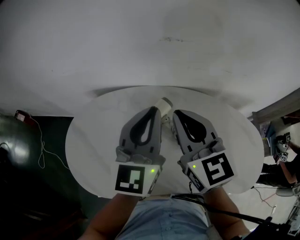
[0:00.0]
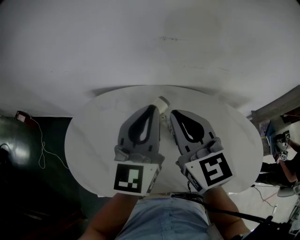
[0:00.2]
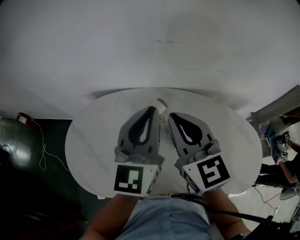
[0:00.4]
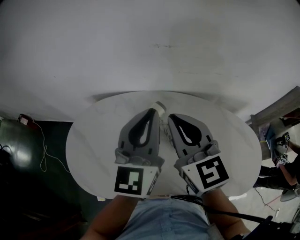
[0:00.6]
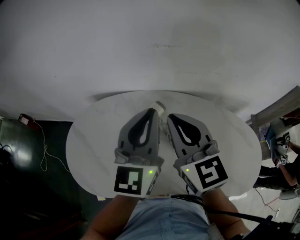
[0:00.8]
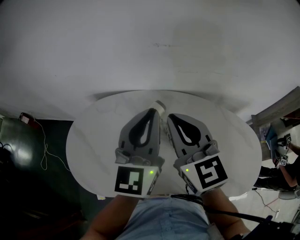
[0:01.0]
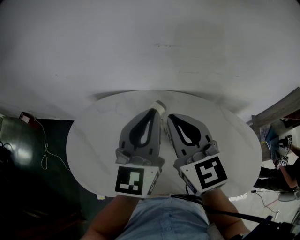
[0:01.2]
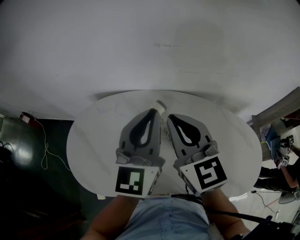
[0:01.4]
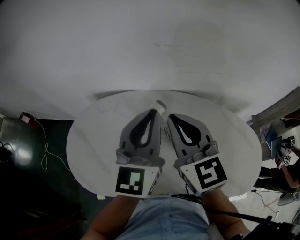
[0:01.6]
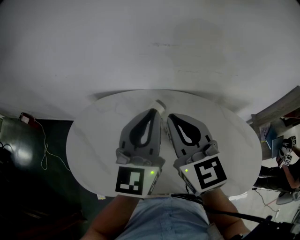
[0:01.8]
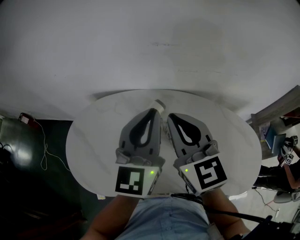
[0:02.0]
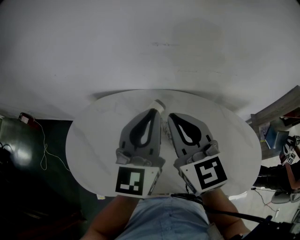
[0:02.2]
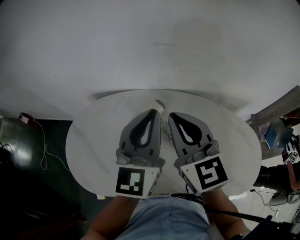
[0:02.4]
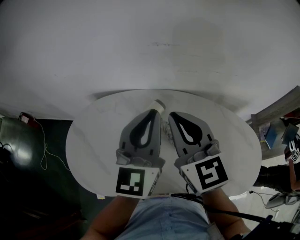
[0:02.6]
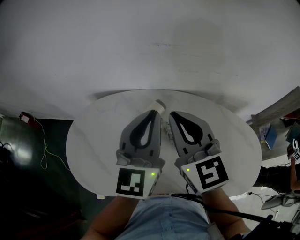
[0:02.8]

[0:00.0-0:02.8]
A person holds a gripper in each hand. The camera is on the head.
0:00.0 to 0:01.4: The left gripper ends up some 5 cm from where it was.
0:01.4 to 0:02.8: Both grippers stay about where they are.

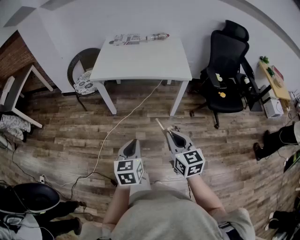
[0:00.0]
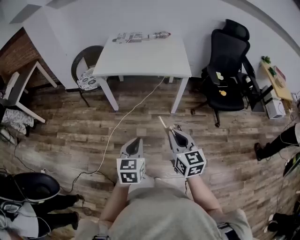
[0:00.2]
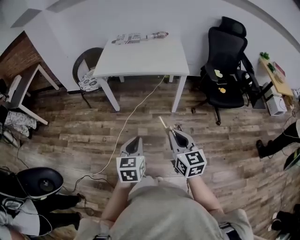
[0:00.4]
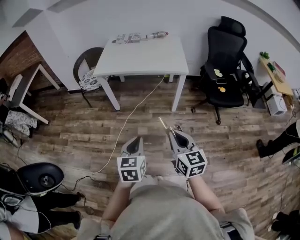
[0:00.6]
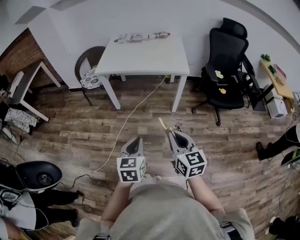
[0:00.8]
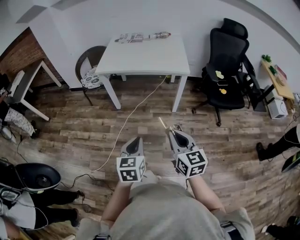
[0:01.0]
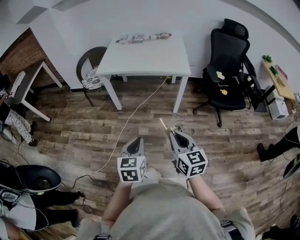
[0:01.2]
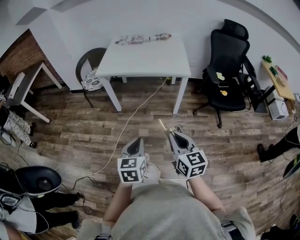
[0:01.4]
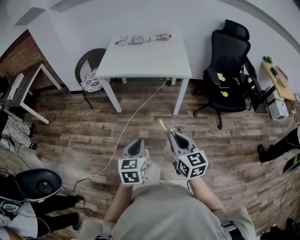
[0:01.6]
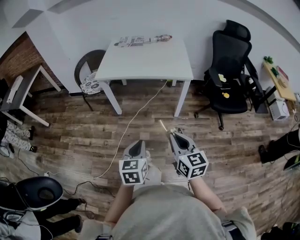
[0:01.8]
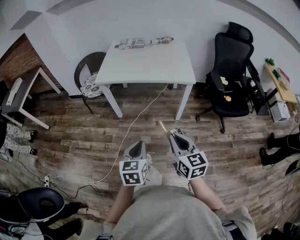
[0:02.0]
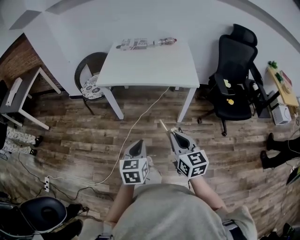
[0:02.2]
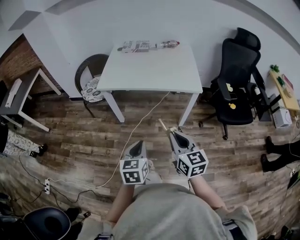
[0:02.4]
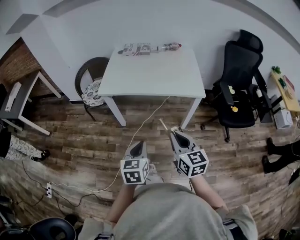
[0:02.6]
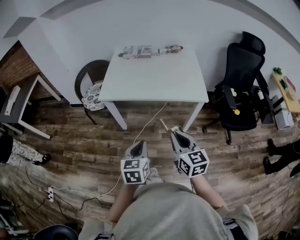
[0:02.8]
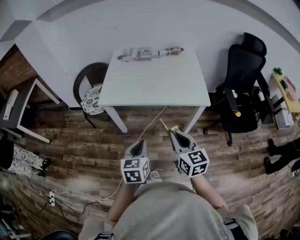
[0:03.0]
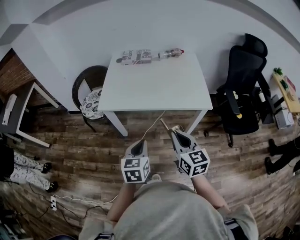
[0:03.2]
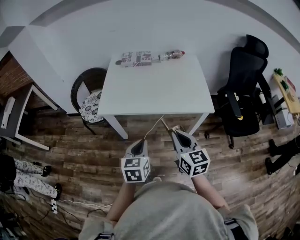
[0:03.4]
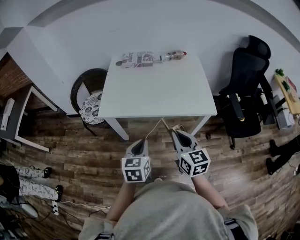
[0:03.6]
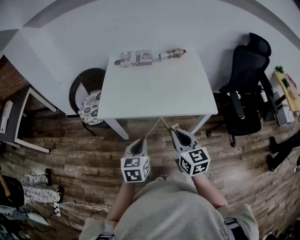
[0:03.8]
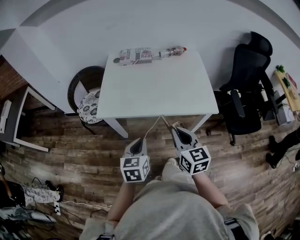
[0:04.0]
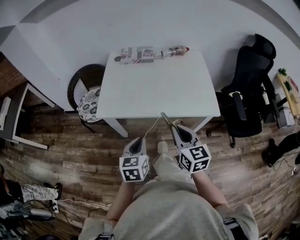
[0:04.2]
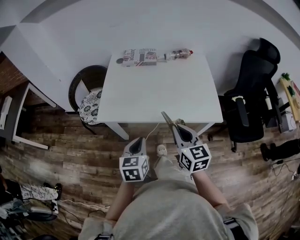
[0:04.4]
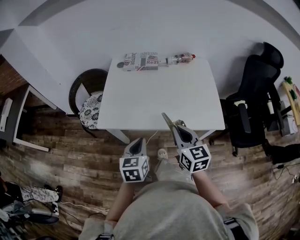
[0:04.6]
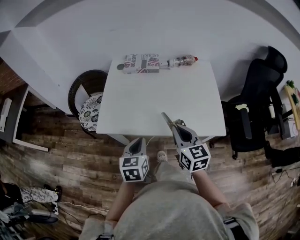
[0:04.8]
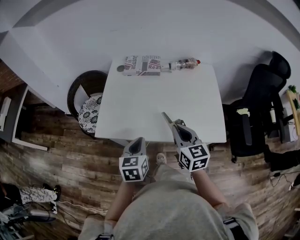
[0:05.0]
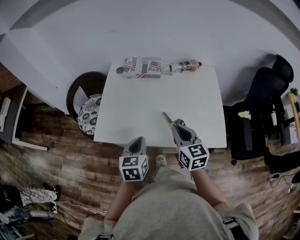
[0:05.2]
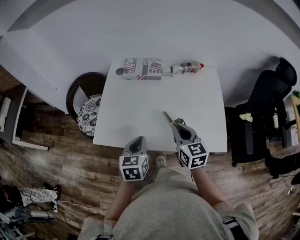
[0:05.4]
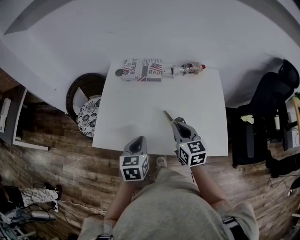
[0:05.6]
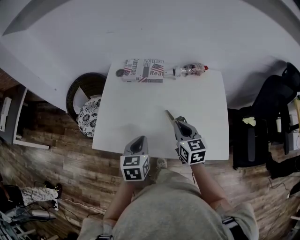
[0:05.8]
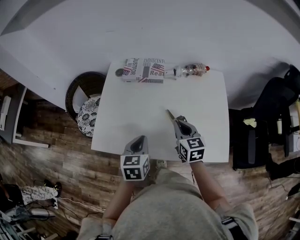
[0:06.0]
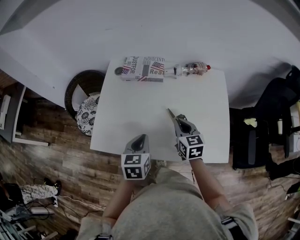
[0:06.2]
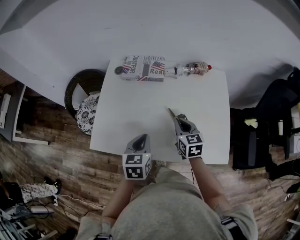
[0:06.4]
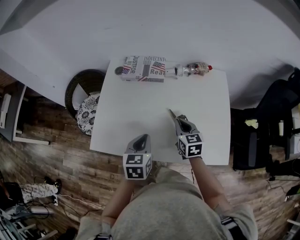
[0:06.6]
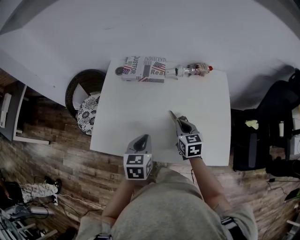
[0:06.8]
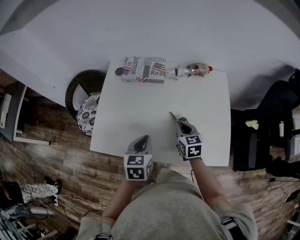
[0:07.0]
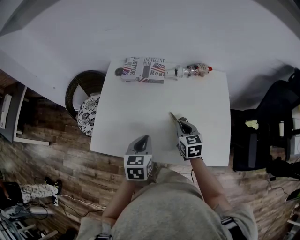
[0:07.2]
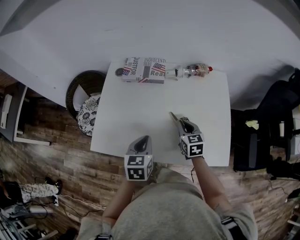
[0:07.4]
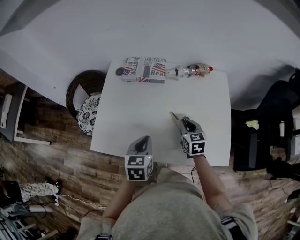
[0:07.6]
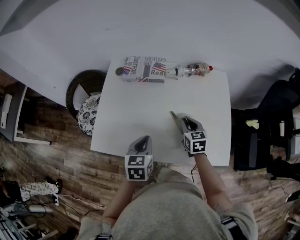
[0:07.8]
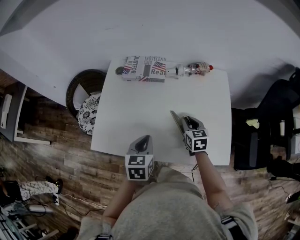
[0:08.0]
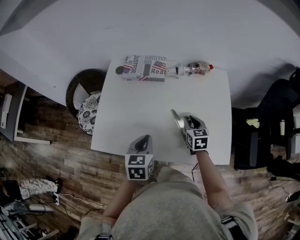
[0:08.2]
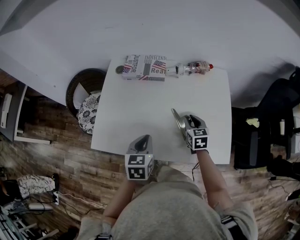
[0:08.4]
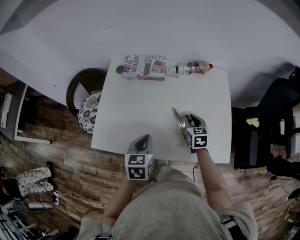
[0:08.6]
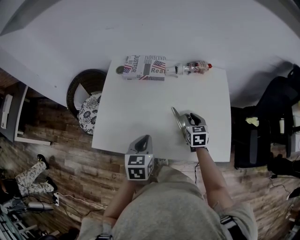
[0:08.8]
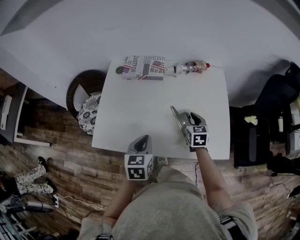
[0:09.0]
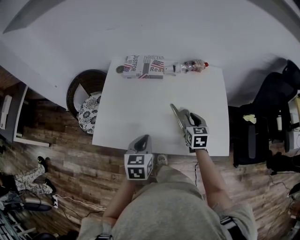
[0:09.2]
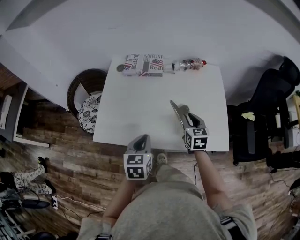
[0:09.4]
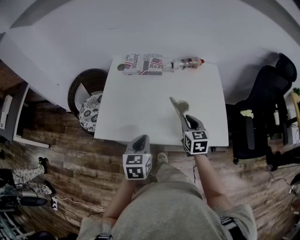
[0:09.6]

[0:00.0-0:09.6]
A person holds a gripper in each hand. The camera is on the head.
0:00.0 to 0:01.6: The grippers both shift backward by some 5 cm.
0:01.6 to 0:03.2: Both grippers move forward, roughly 35 cm.
0:03.2 to 0:04.8: Both grippers move forward, some 25 cm.
0:04.8 to 0:06.4: The left gripper is displaced forward by approximately 15 cm. Meanwhile the right gripper is displaced forward and downward by about 25 cm.
0:06.4 to 0:08.0: The right gripper moves about 5 cm.
0:08.0 to 0:09.6: The right gripper travels backward and upward by roughly 15 cm. Meanwhile the left gripper moves backward, approximately 10 cm.

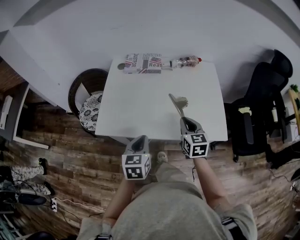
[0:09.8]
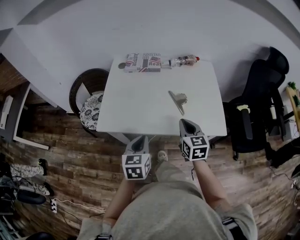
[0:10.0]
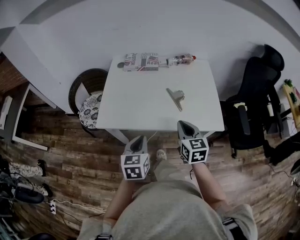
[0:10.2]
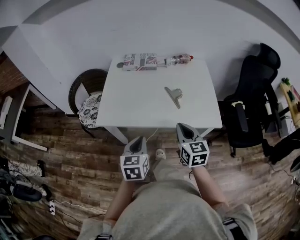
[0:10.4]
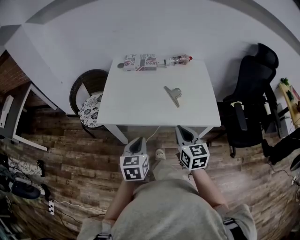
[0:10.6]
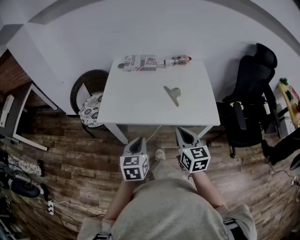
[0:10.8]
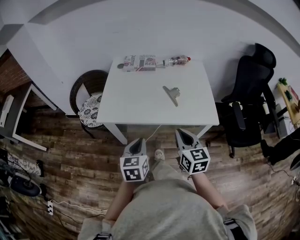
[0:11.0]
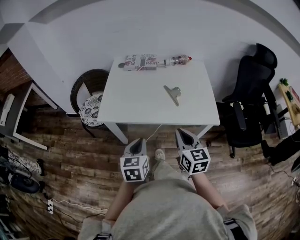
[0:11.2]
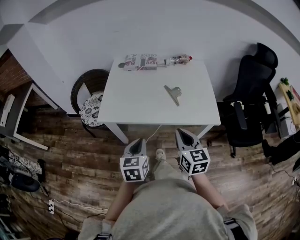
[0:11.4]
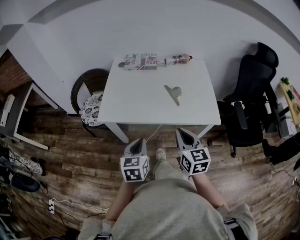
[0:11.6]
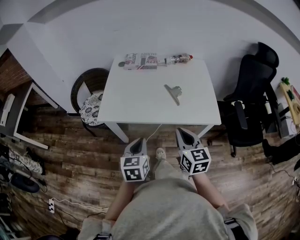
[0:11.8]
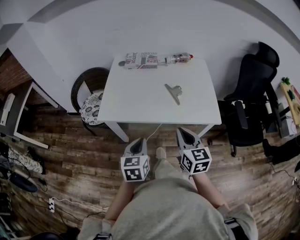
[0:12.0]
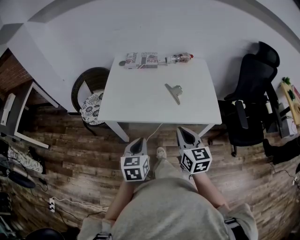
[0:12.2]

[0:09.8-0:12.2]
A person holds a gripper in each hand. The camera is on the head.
0:09.8 to 0:11.0: Both grippers move backward, some 15 cm.
0:11.0 to 0:12.2: The two grippers keep their place.

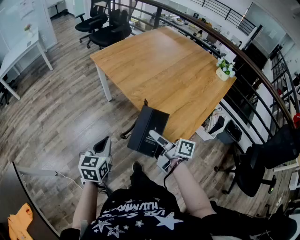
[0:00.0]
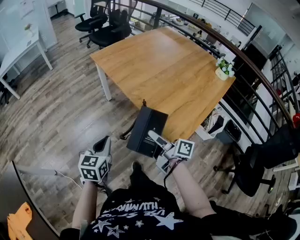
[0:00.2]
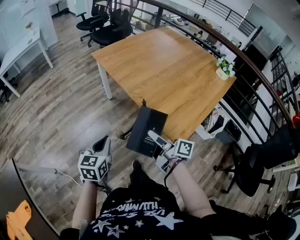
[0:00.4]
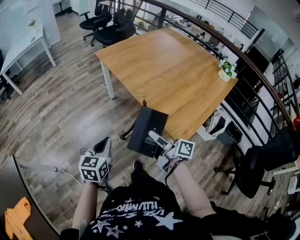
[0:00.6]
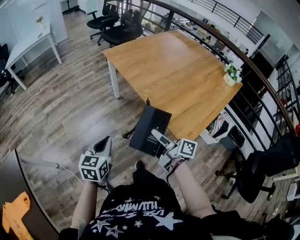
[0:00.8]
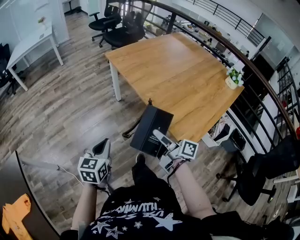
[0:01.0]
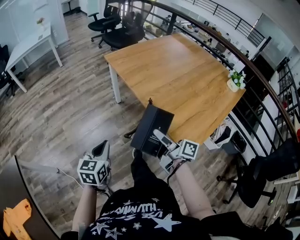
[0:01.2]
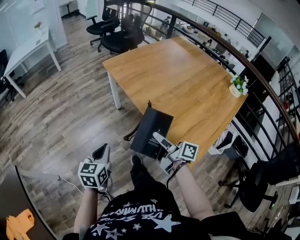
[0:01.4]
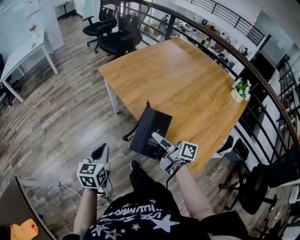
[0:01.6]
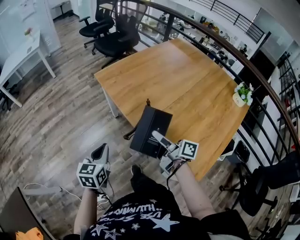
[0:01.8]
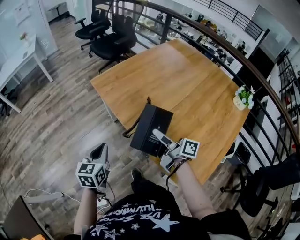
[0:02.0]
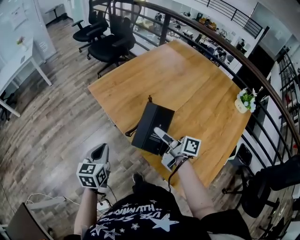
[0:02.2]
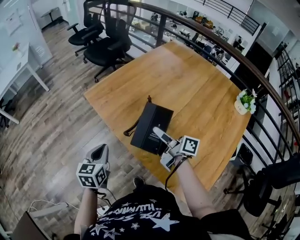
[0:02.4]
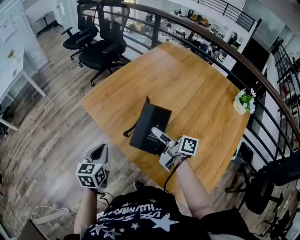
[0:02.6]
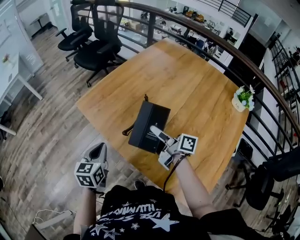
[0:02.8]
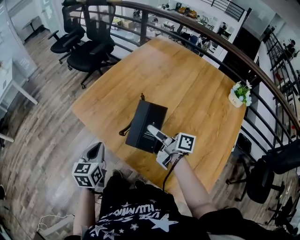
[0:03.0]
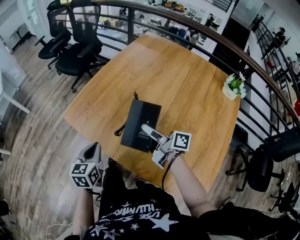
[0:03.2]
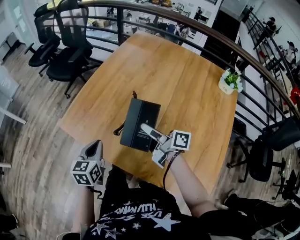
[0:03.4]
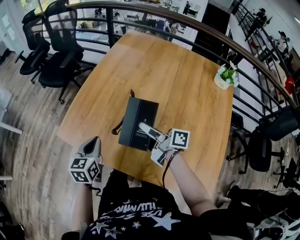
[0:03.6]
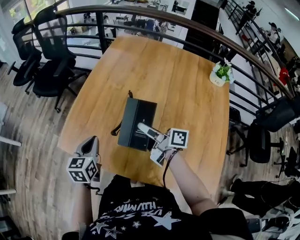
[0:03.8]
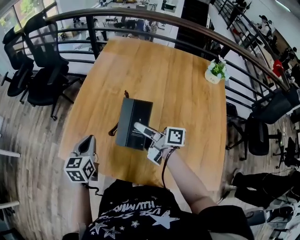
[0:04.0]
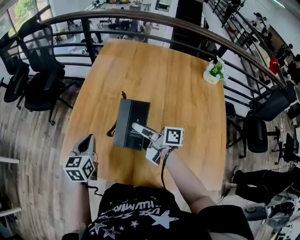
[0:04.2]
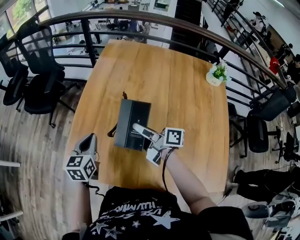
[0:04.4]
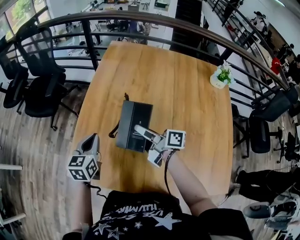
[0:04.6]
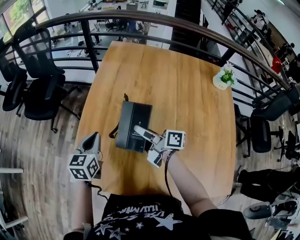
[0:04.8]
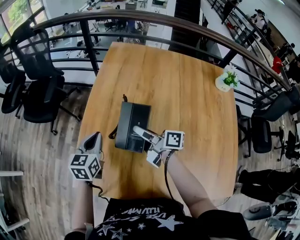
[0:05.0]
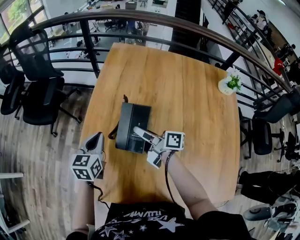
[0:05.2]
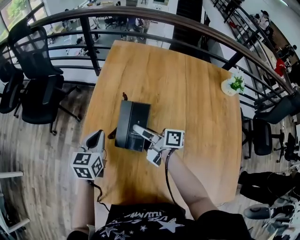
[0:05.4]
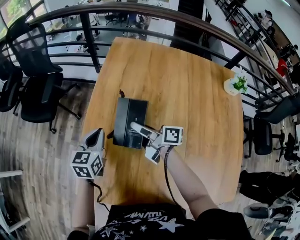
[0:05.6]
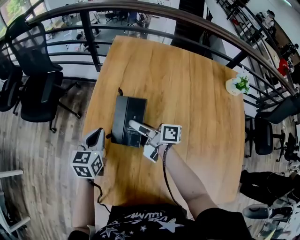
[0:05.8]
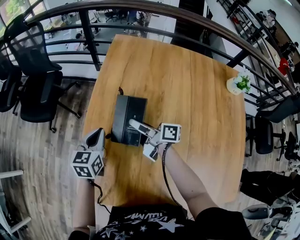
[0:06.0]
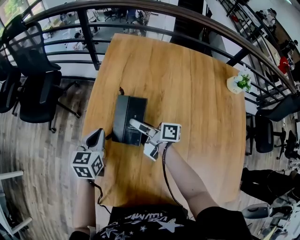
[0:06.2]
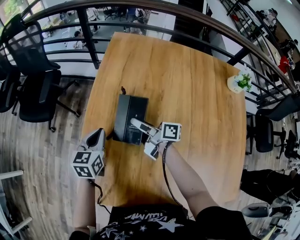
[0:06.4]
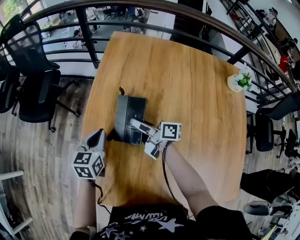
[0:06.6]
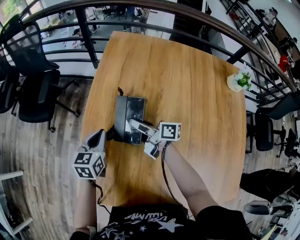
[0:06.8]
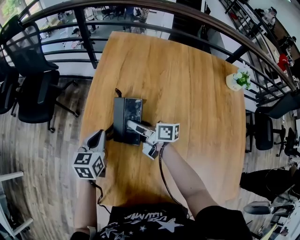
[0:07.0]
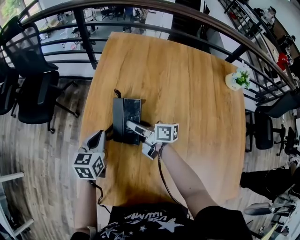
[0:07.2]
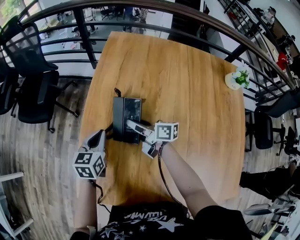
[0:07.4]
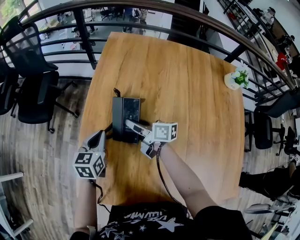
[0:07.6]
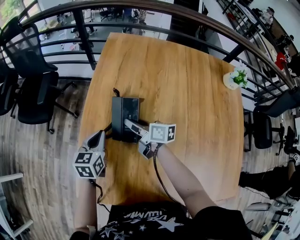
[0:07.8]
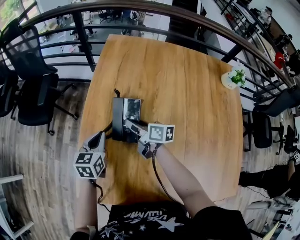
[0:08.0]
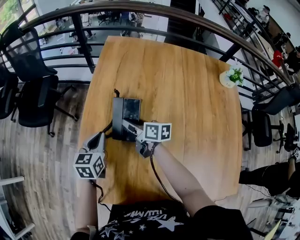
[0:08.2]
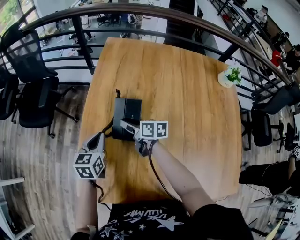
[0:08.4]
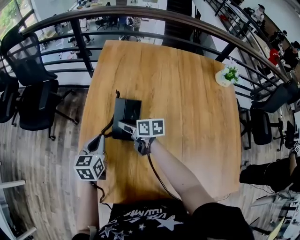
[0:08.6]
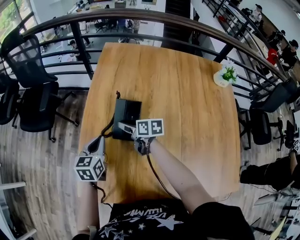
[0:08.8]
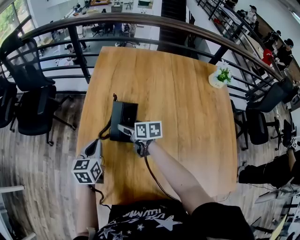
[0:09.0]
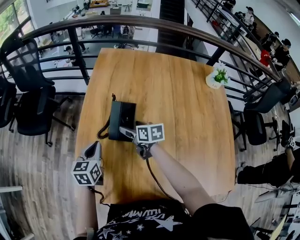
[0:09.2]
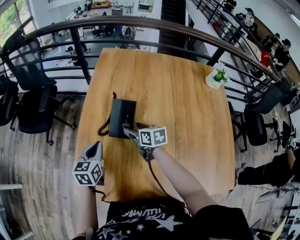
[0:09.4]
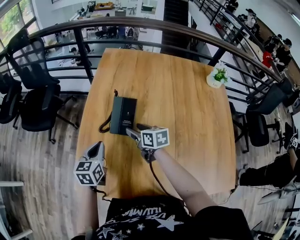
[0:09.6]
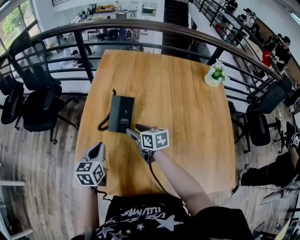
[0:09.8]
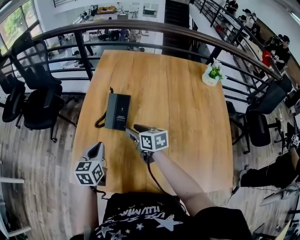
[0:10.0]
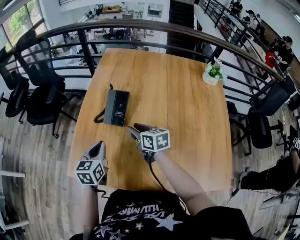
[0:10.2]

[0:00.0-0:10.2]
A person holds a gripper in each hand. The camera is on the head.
0:00.0 to 0:01.4: The left gripper goes approximately 10 cm forward and to the left; the right gripper goes approximately 10 cm forward.
0:01.4 to 0:03.0: The two grippers go some 35 cm forward.
0:03.0 to 0:04.4: The left gripper travels forward by approximately 30 cm, and rotates approximately 30 degrees. Meanwhile the right gripper goes roughly 15 cm forward, and rotates approximately 20 degrees.
0:04.4 to 0:05.8: The grippers both shift forward by roughly 15 cm.
0:05.8 to 0:07.2: The grippers stay close to where they were, moving slightly.
0:07.2 to 0:08.8: The right gripper changes its angle by about 30 degrees, and opens.
0:08.8 to 0:10.2: The left gripper heads backward, covering some 15 cm; the right gripper heads backward and upward, covering roughly 15 cm, and closes.
